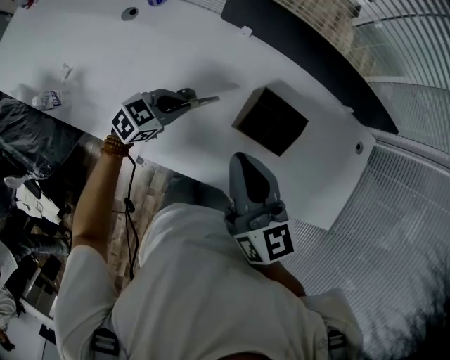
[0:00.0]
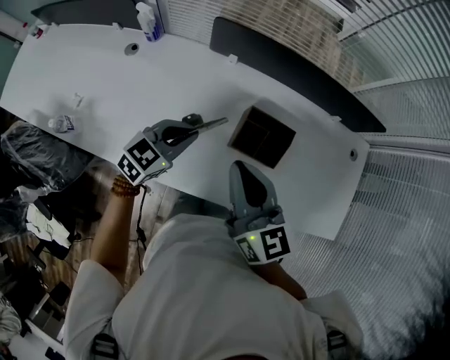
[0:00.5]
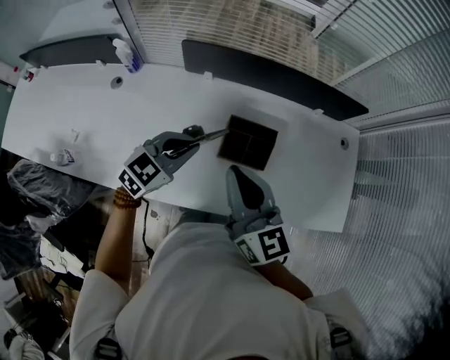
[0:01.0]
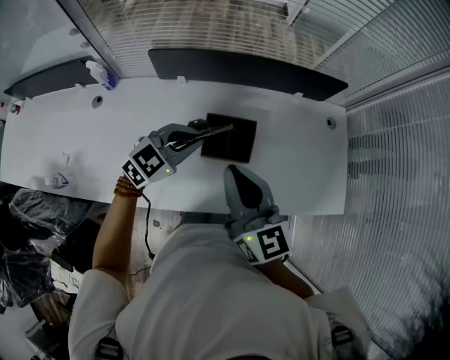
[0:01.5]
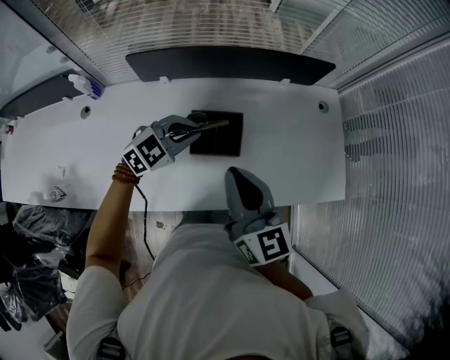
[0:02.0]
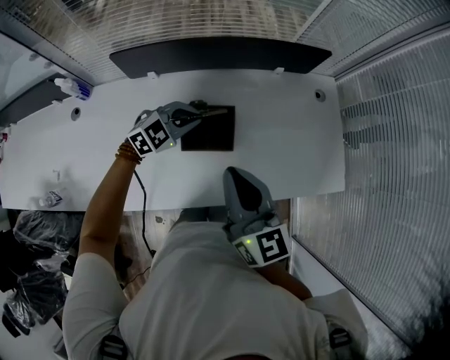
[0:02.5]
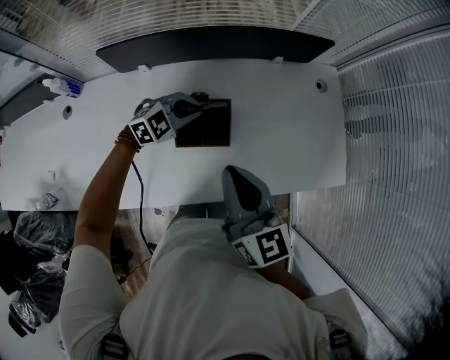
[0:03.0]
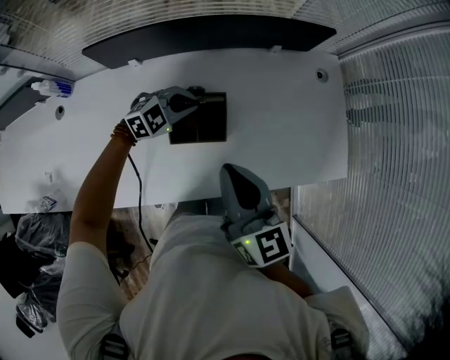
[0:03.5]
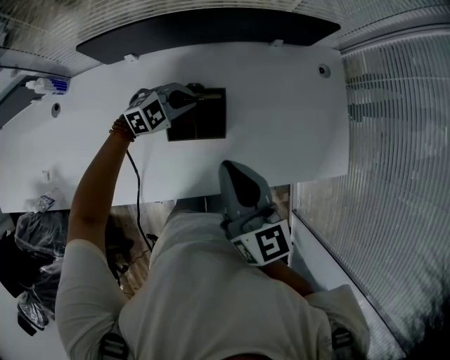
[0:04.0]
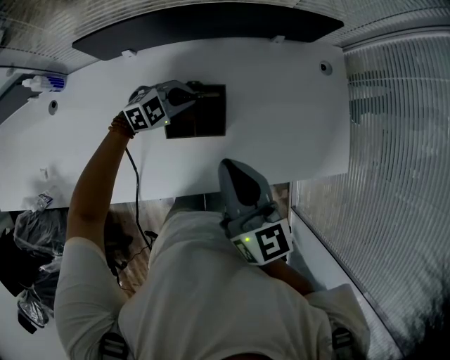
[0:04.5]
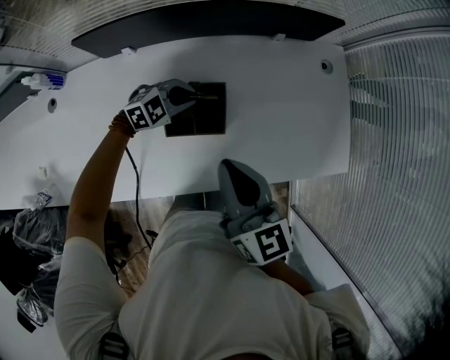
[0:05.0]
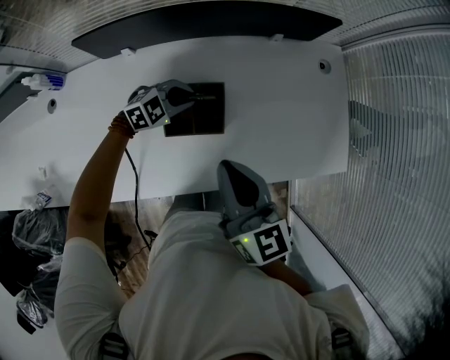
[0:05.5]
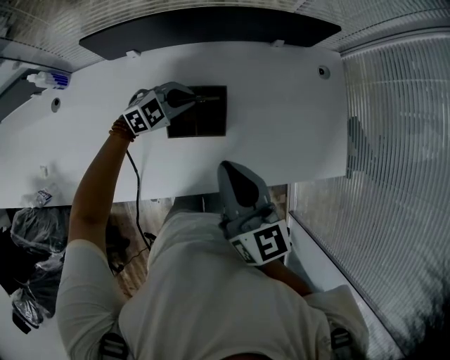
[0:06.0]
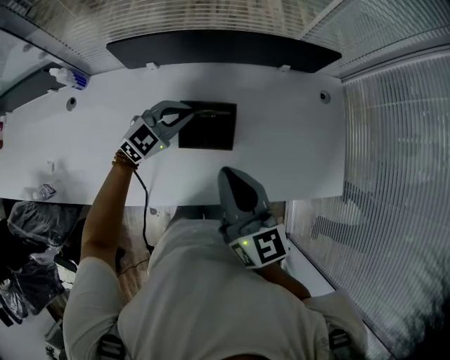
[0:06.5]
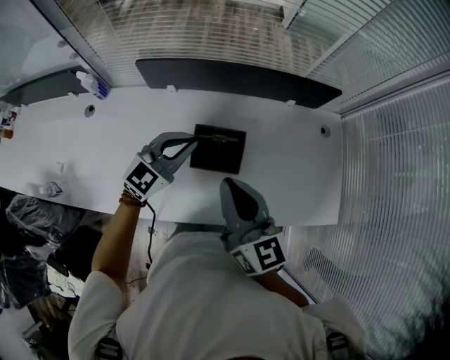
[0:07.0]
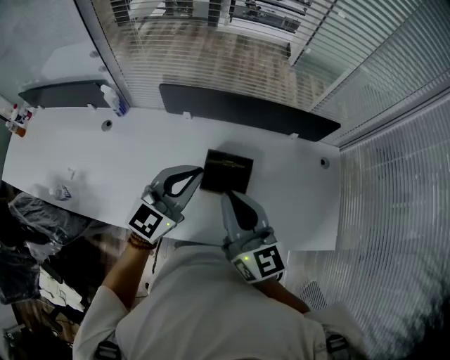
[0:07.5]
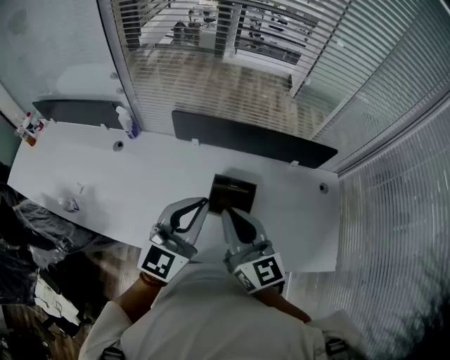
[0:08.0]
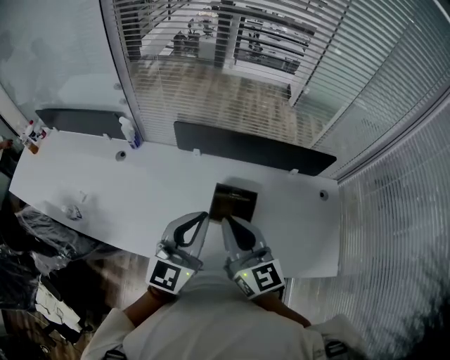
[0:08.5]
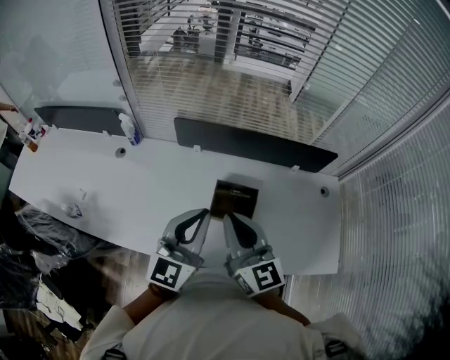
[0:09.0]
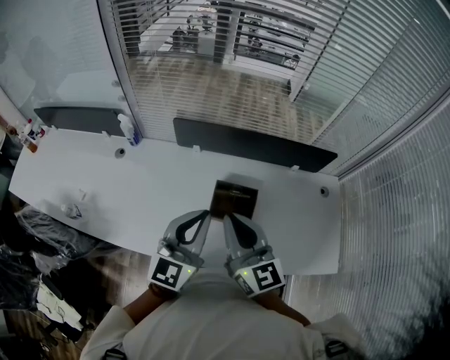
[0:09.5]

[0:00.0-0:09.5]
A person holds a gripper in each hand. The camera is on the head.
0:00.0 to 0:02.0: The right gripper moves to the right, about 15 cm, and turns by approximately 20 degrees; the left gripper travels to the right and upward by roughly 25 cm, and changes its angle by approximately 40 degrees.
0:02.0 to 0:04.0: The left gripper goes roughly 15 cm downward and forward, while the right gripper moves downward, about 5 cm.
0:04.0 to 0:05.5: The grippers move only a little.
0:05.5 to 0:07.5: The right gripper moves upward, some 10 cm, and swivels about 20 degrees; the left gripper is displaced upward by approximately 30 cm, and points its fingers some 40 degrees further upward.
0:07.5 to 0:09.5: The left gripper travels backward by some 5 cm.

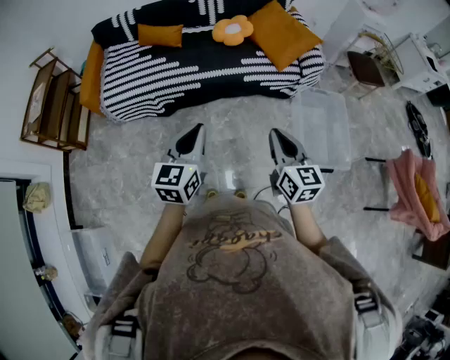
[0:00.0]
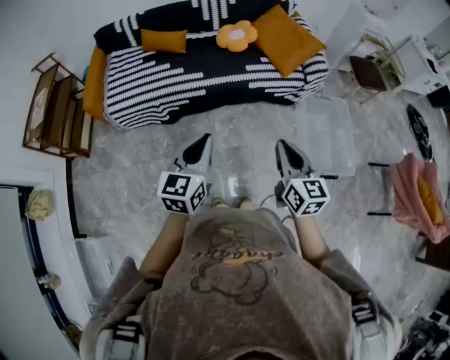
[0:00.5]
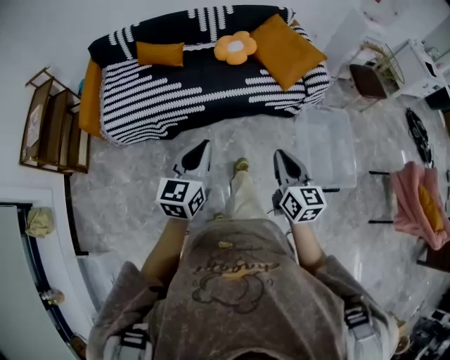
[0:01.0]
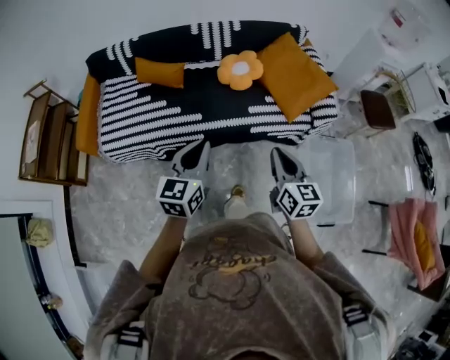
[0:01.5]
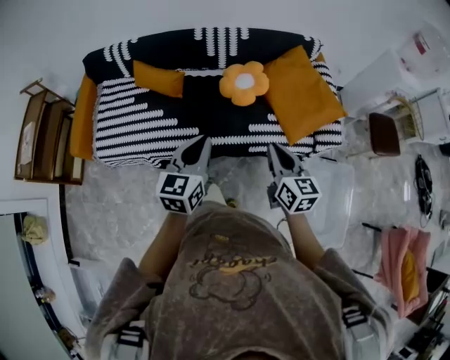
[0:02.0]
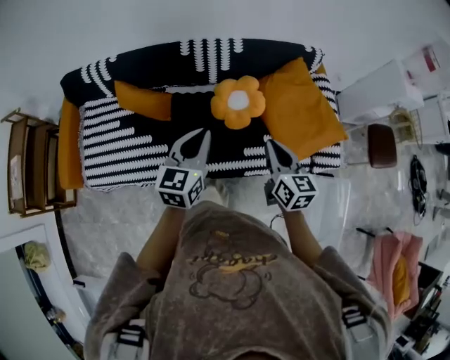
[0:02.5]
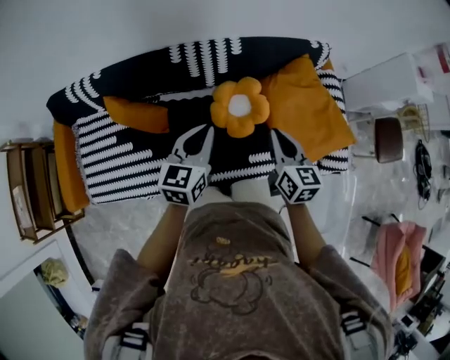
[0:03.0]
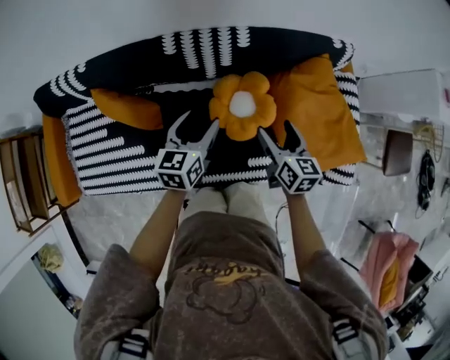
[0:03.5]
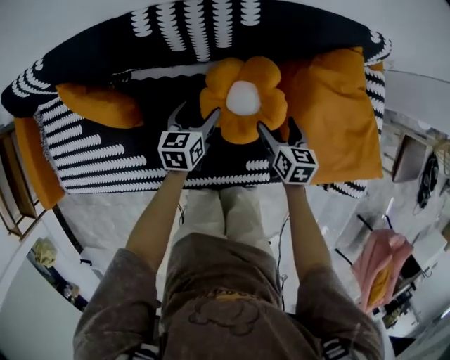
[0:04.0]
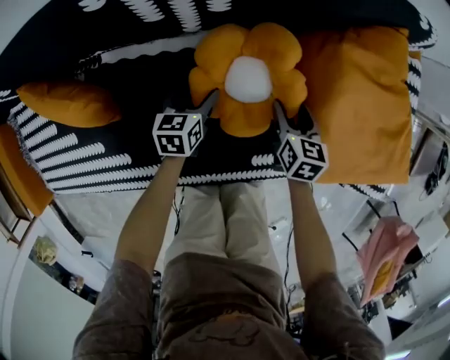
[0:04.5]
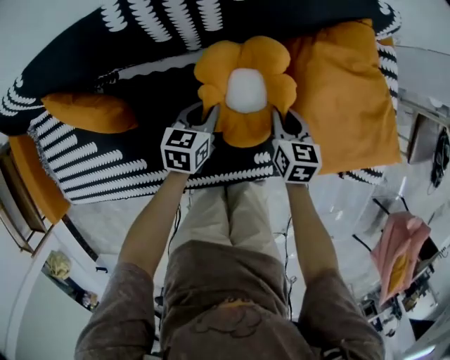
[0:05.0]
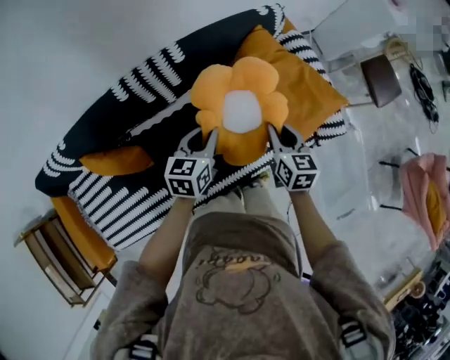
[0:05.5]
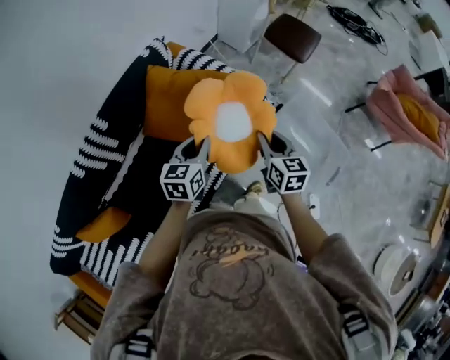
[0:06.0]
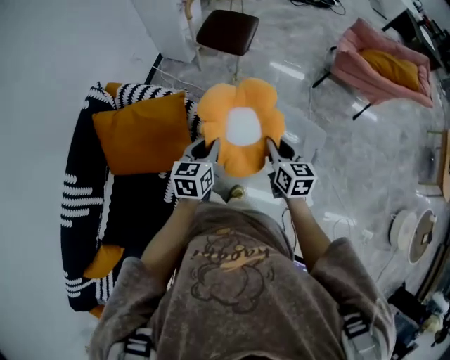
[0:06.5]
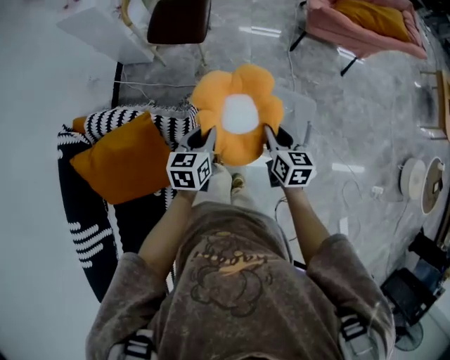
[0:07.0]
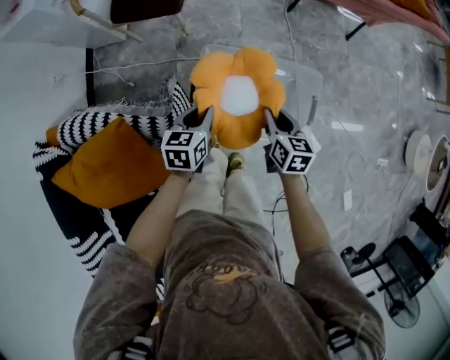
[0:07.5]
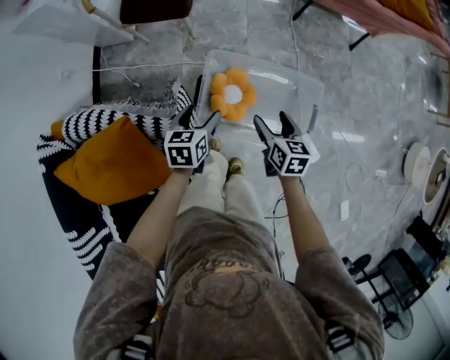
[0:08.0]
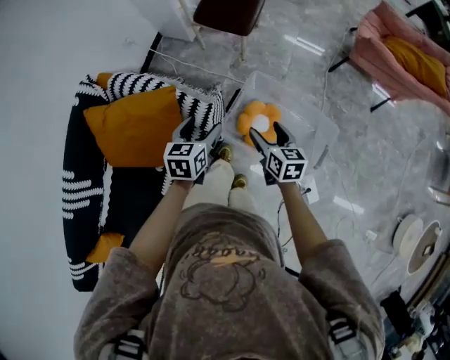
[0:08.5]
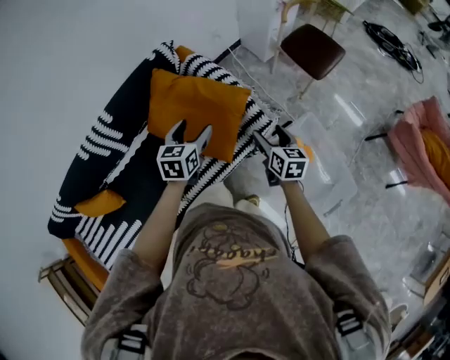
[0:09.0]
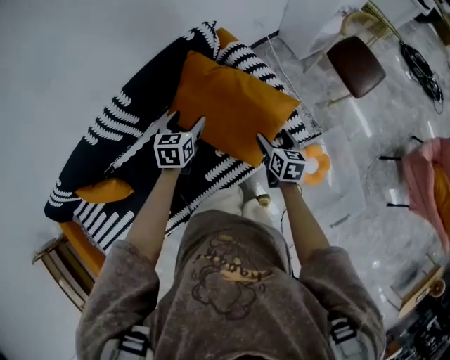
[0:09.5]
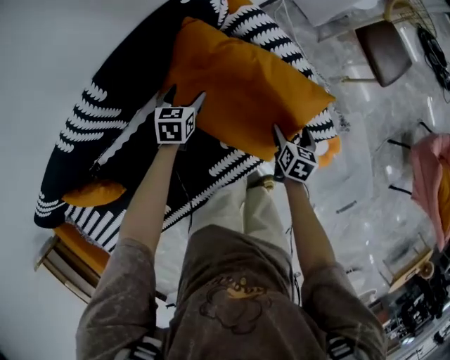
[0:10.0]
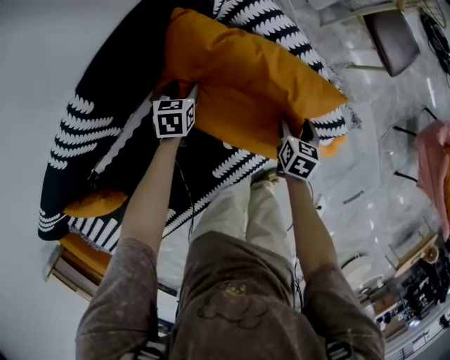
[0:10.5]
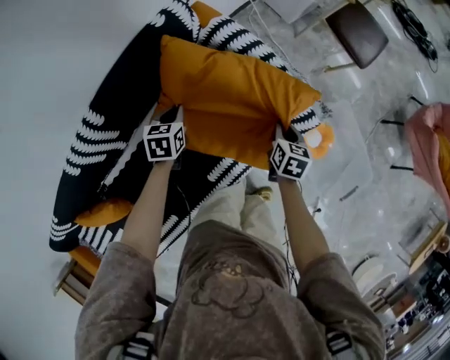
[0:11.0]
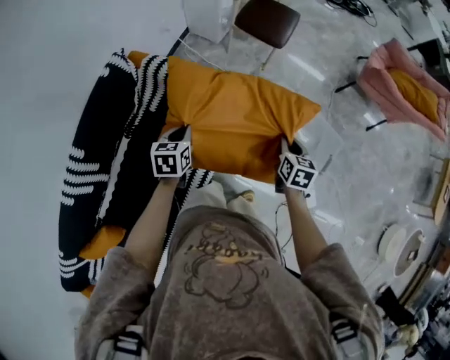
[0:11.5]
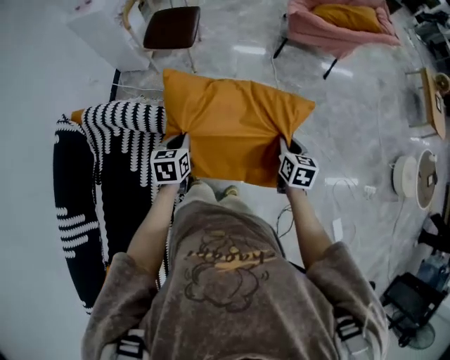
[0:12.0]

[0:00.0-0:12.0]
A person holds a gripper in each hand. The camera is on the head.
0:00.0 to 0:02.0: Both grippers are carried forward, some 50 cm.
0:02.0 to 0:04.0: The pair of grippers is taken forward, roughly 50 cm. Both grippers move downward, roughly 40 cm. The left gripper rotates about 30 degrees, and opens its fingers, while the right gripper tilts its fingers approximately 30 degrees downward, and opens.
0:04.0 to 0:06.0: The pair of grippers is taken approximately 50 cm. The left gripper changes its angle by roughly 50 degrees, and closes up, while the right gripper rotates roughly 50 degrees, and closes.
0:06.0 to 0:08.0: The two grippers travel together, about 50 cm. The right gripper turns by roughly 40 degrees, and opens up, while the left gripper changes its angle by approximately 40 degrees, and opens up.
0:08.0 to 0:10.0: The pair of grippers is taken approximately 70 cm. The right gripper rotates approximately 40 degrees; the left gripper rotates roughly 50 degrees.
0:10.0 to 0:12.0: The two grippers travel together, some 60 cm. The left gripper turns by approximately 40 degrees, and closes its fingers. The right gripper turns by about 40 degrees, and closes up.

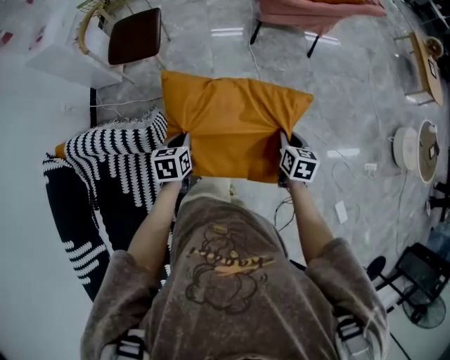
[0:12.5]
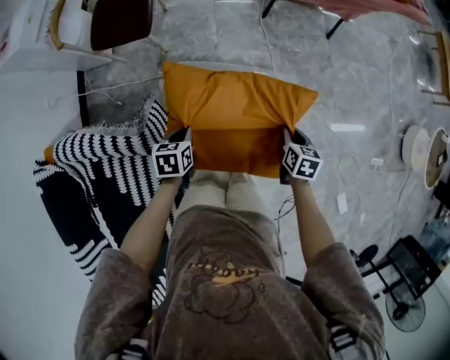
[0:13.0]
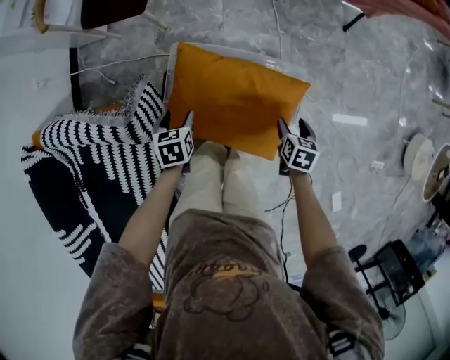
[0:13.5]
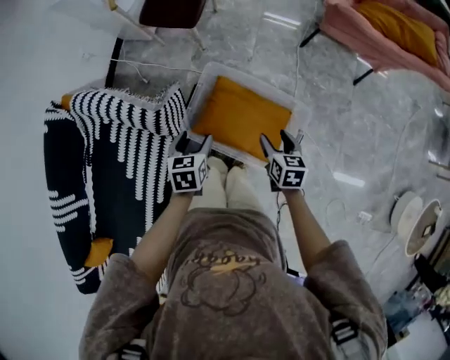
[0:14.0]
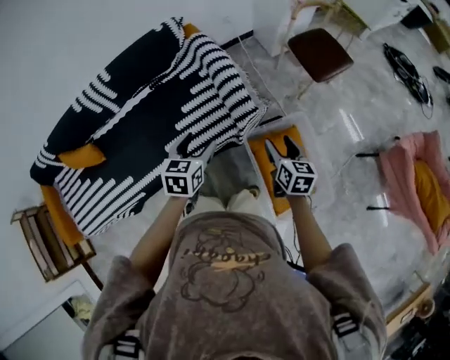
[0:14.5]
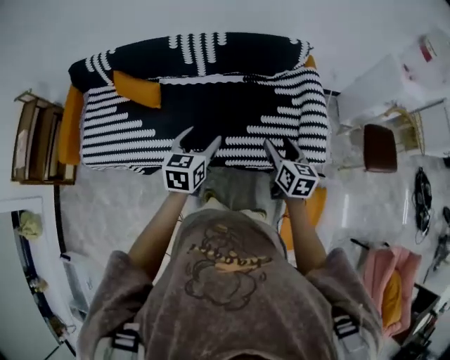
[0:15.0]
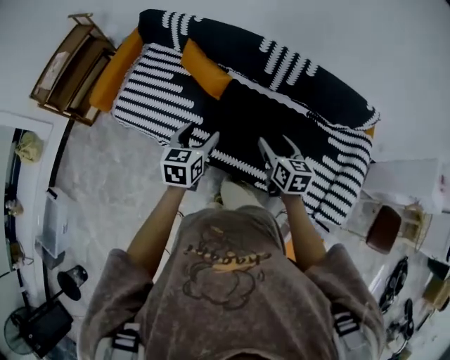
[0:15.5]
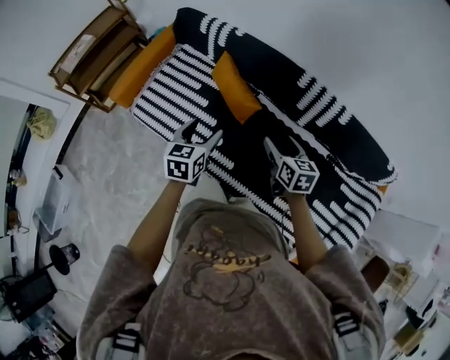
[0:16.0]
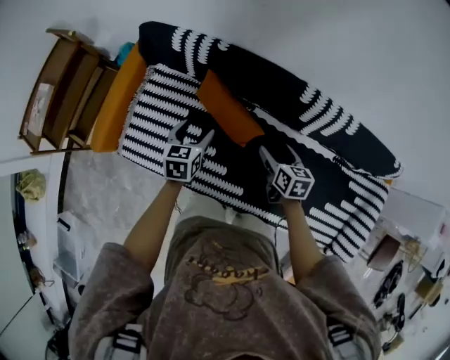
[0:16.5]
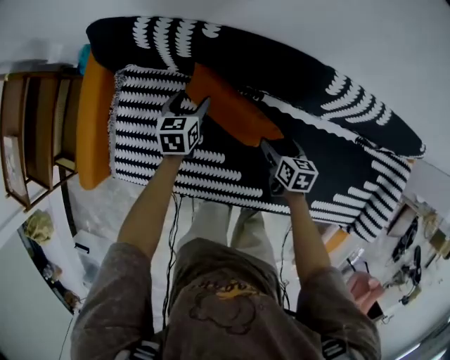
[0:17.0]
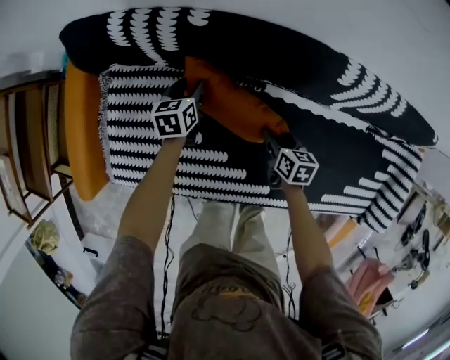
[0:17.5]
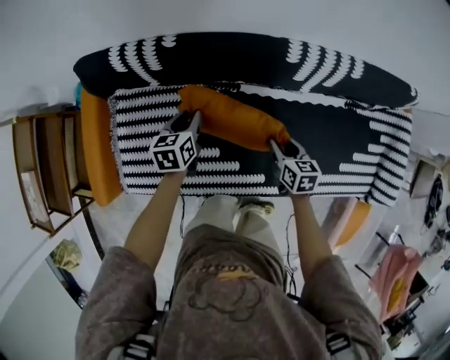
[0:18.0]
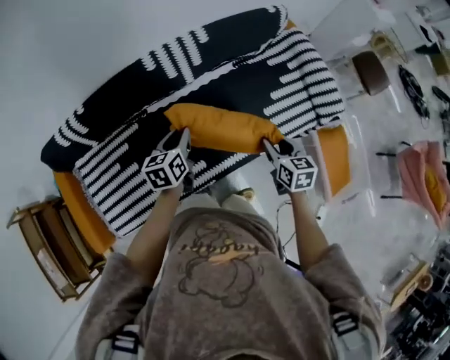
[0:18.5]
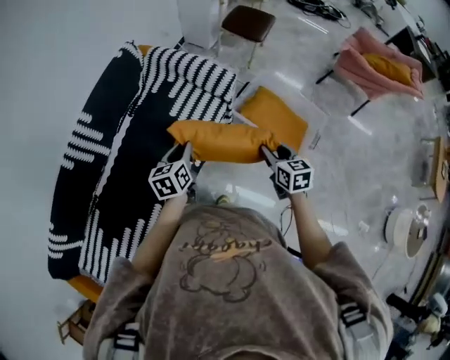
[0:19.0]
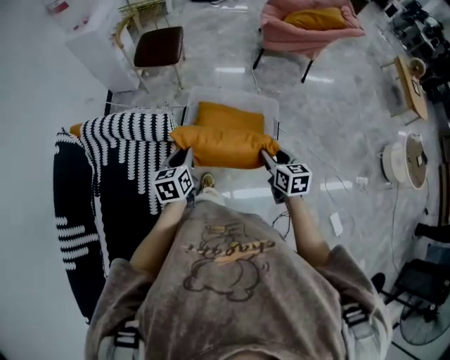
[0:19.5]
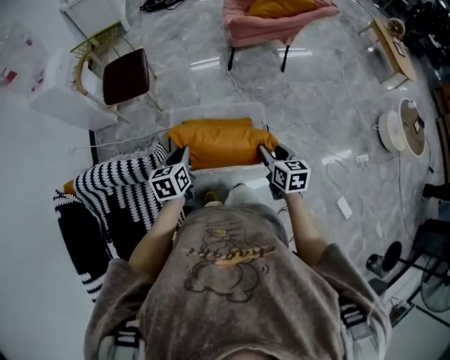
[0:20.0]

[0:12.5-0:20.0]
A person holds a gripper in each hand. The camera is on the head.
0:12.5 to 0:14.5: The left gripper moves approximately 30 cm, changes its angle by roughly 60 degrees, and opens up. Meanwhile the right gripper moves approximately 25 cm downward and comes back, rotates about 70 degrees, and opens its fingers.
0:14.5 to 0:16.5: The two grippers travel together, some 1 m. The right gripper rotates approximately 50 degrees. Meanwhile the left gripper rotates roughly 50 degrees.
0:16.5 to 0:18.0: The left gripper travels forward and downward by about 15 cm, and closes up, while the right gripper travels downward by some 10 cm, and closes.
0:18.0 to 0:20.0: Both grippers are carried some 1.5 m. The left gripper rotates about 100 degrees. Meanwhile the right gripper swivels approximately 100 degrees.
